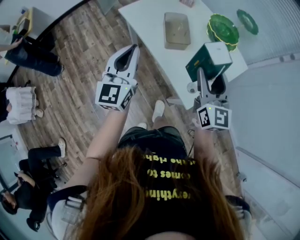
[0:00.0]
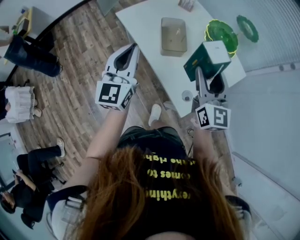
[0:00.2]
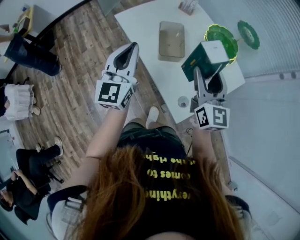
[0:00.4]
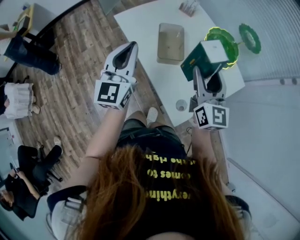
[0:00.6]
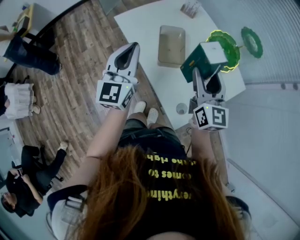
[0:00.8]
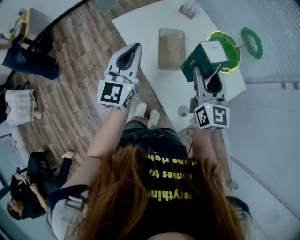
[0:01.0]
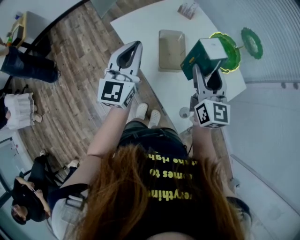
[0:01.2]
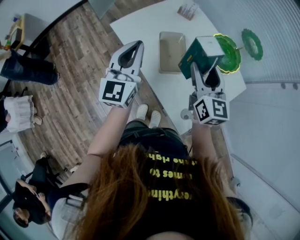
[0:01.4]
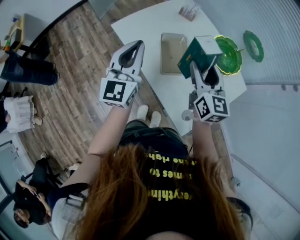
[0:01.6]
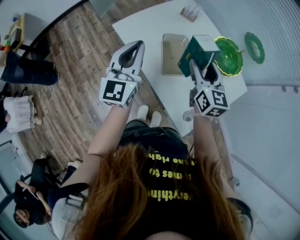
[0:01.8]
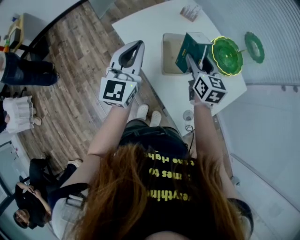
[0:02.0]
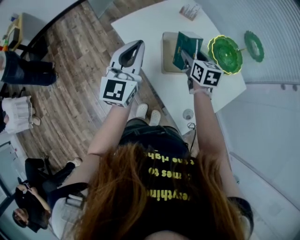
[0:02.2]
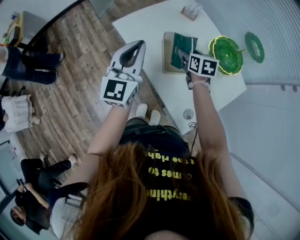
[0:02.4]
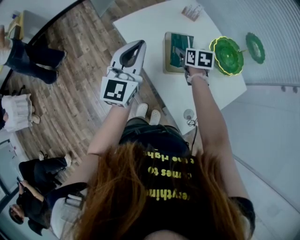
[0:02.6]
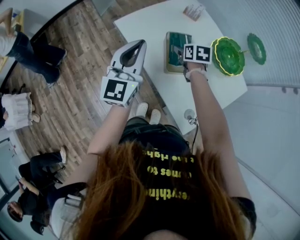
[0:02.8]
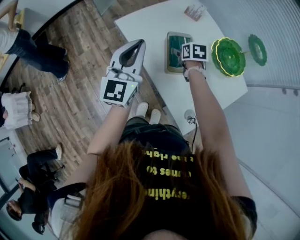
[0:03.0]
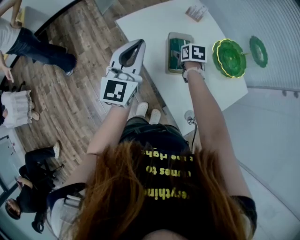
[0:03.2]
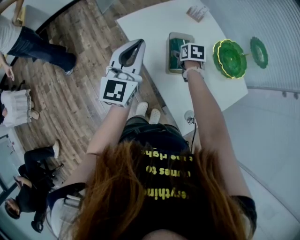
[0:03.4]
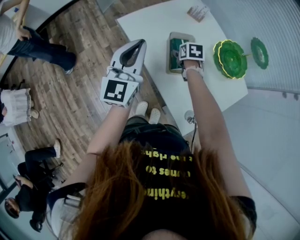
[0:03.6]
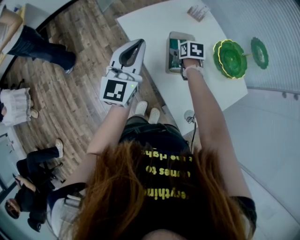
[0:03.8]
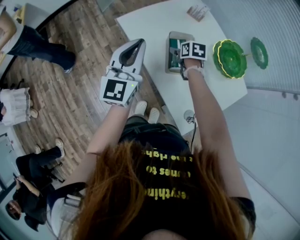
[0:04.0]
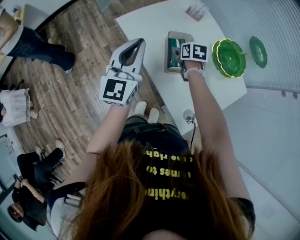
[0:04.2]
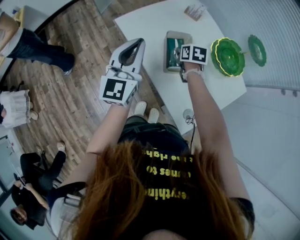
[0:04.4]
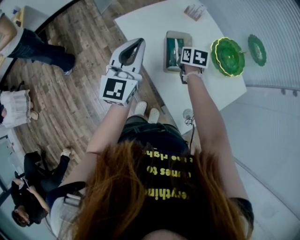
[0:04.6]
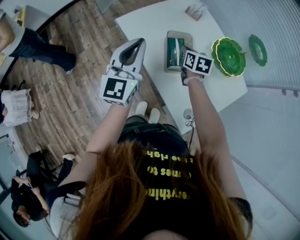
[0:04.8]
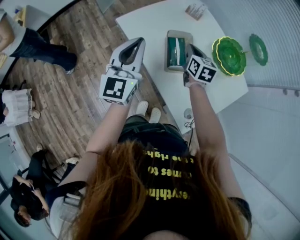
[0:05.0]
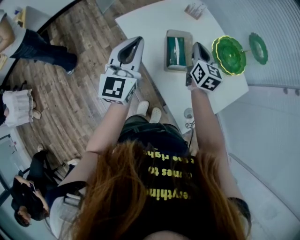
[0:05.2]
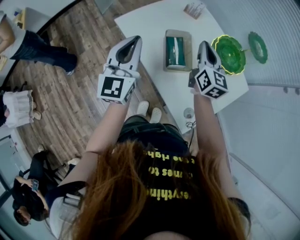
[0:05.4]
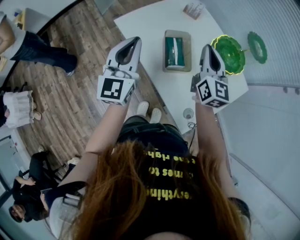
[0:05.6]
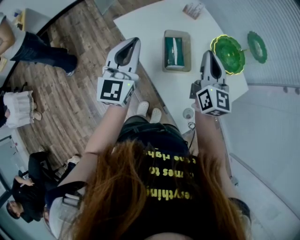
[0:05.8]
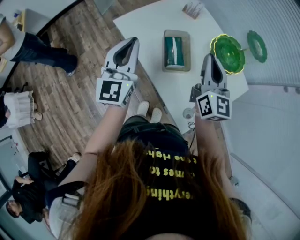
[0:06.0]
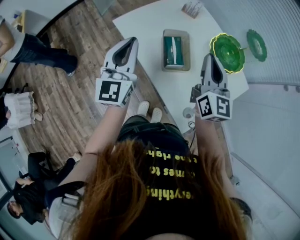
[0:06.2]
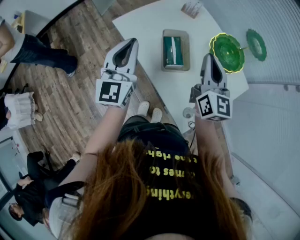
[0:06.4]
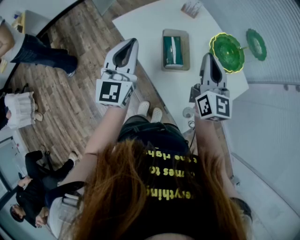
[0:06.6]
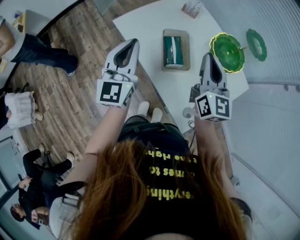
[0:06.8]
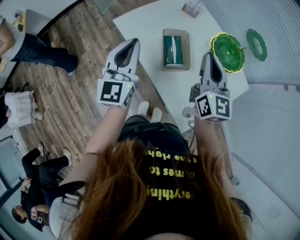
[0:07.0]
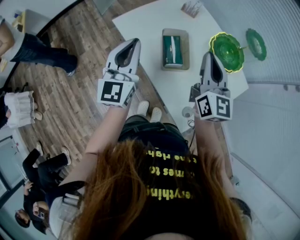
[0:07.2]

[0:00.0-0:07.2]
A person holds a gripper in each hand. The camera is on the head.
0:00.0 to 0:01.4: Both grippers travel together forward, approximately 20 cm.
0:01.4 to 0:02.8: The right gripper is displaced downward and forward by about 25 cm, and points its fingers about 50 degrees further downward.
0:02.8 to 0:04.4: The right gripper closes up.
0:04.4 to 0:05.8: The right gripper travels upward by about 25 cm, and tips its fingers upward by roughly 50 degrees.
0:05.8 to 0:07.2: The grippers make only small movements.

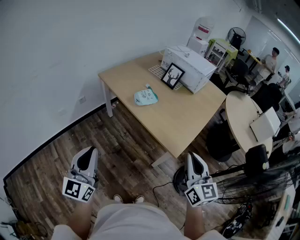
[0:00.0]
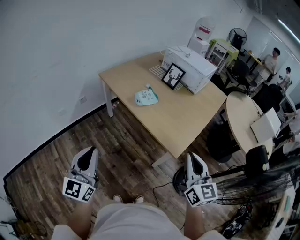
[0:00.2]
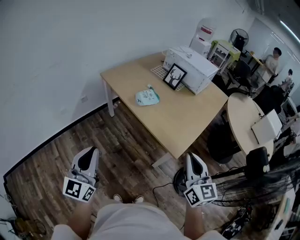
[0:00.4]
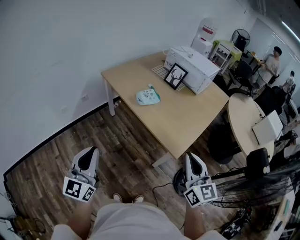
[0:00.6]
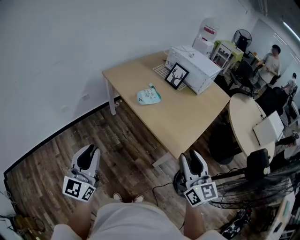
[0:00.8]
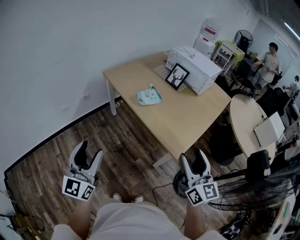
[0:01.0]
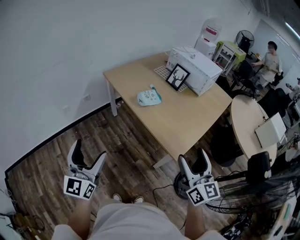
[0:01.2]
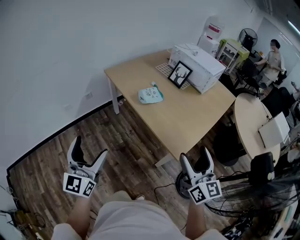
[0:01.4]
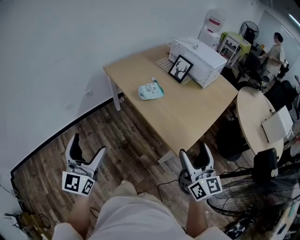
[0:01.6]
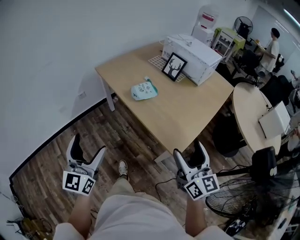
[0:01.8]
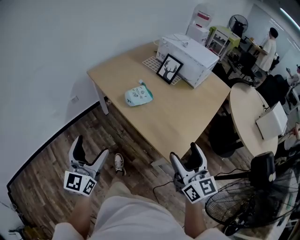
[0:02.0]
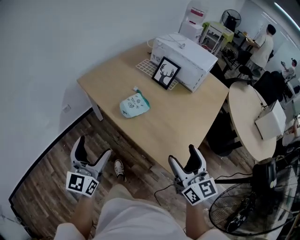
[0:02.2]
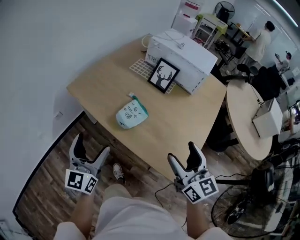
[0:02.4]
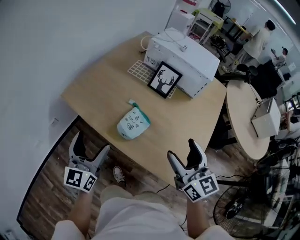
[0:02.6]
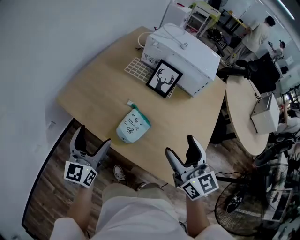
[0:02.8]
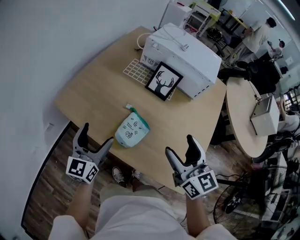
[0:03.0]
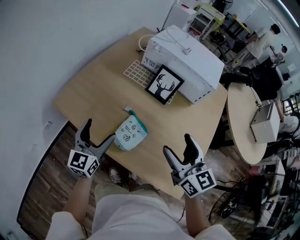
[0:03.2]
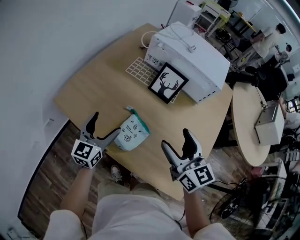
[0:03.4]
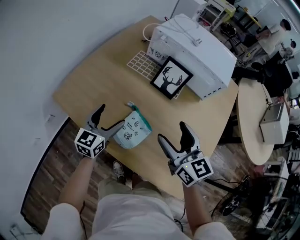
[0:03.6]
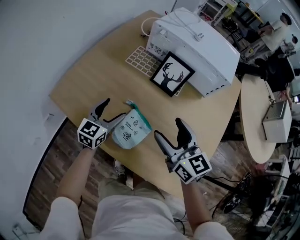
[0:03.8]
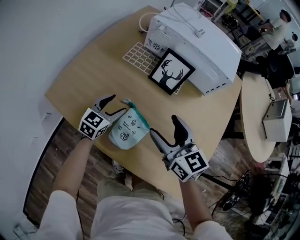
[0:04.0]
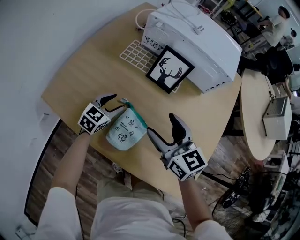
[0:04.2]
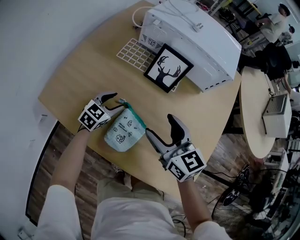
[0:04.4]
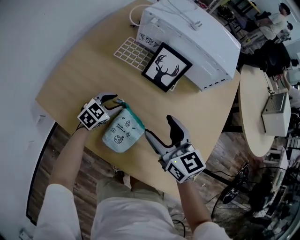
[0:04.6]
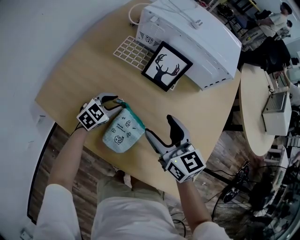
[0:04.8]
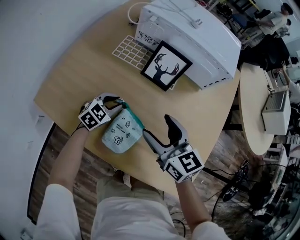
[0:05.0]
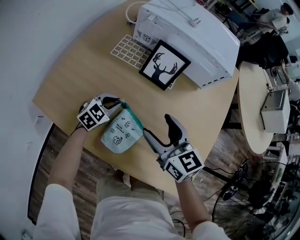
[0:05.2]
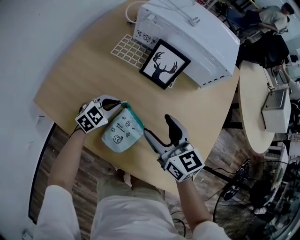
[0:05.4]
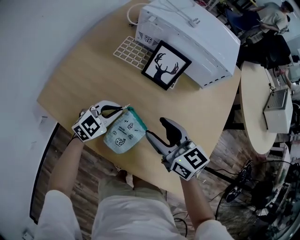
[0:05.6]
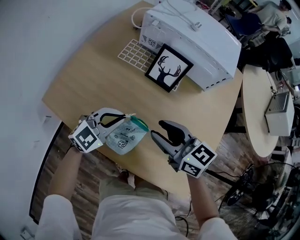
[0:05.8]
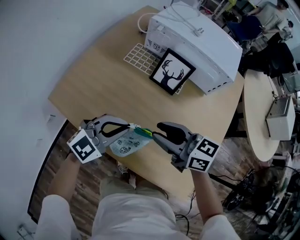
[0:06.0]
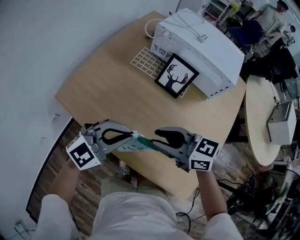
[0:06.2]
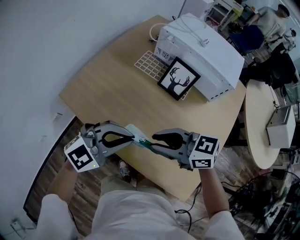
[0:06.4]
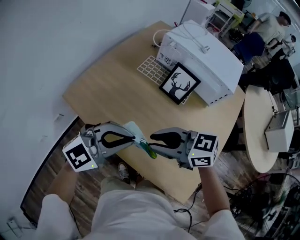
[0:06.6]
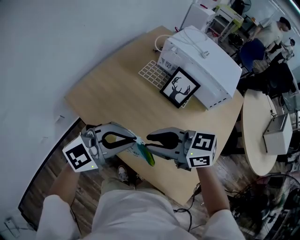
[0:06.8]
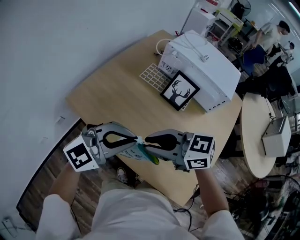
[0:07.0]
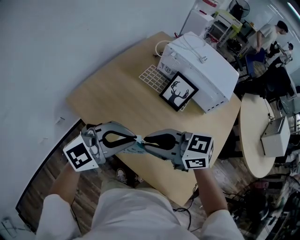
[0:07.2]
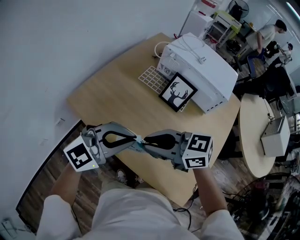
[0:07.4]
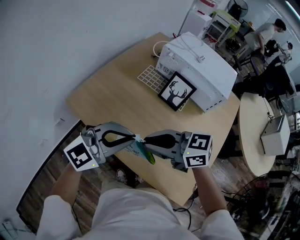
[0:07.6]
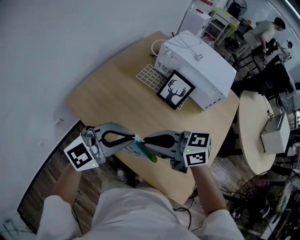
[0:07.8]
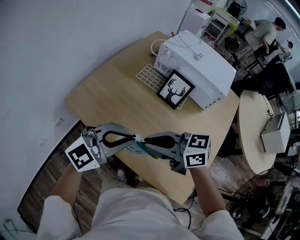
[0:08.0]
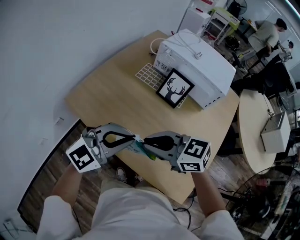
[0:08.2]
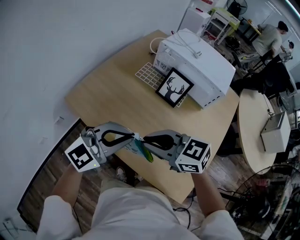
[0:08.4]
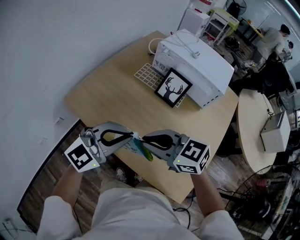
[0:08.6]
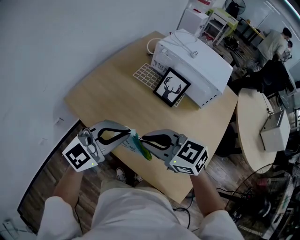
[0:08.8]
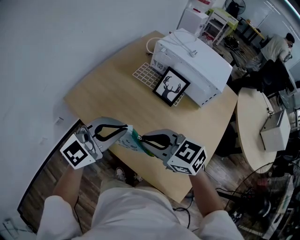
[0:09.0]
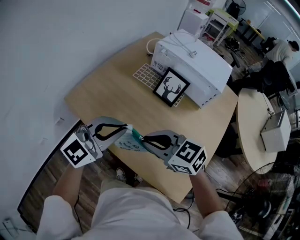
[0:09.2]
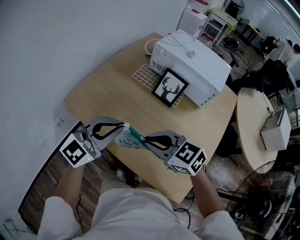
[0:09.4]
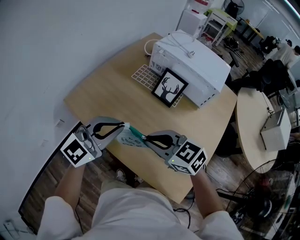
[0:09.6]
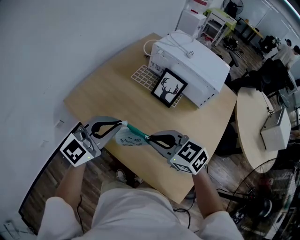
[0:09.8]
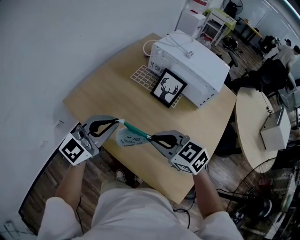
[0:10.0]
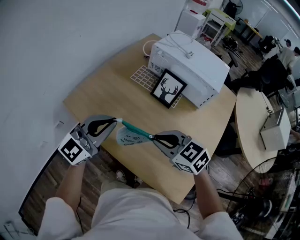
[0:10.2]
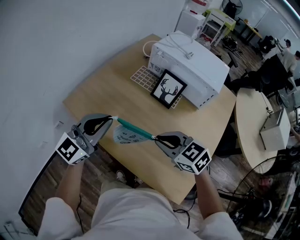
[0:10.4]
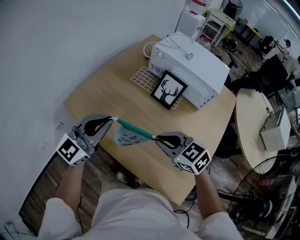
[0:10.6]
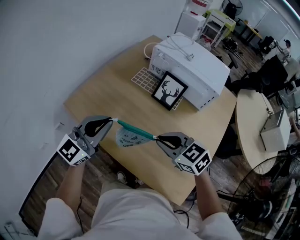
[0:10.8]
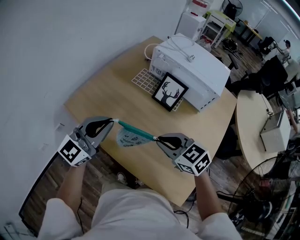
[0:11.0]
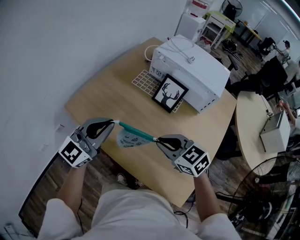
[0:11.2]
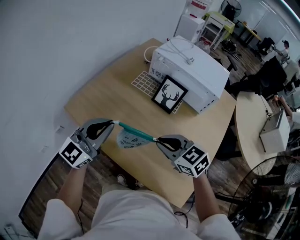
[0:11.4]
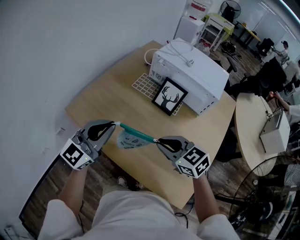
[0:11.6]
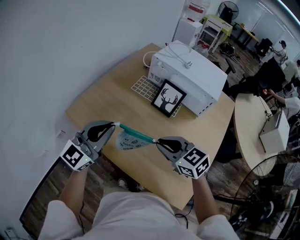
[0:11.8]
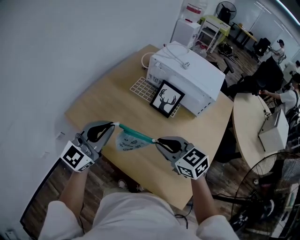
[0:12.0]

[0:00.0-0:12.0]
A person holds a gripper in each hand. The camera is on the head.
0:00.0 to 0:01.6: The left gripper opens up. Meanwhile the right gripper shifts by some 5 cm, and opens.
0:01.6 to 0:03.0: Both grippers are carried forward, roughly 50 cm. The left gripper changes its angle by roughly 30 degrees.
0:03.0 to 0:04.4: The right gripper moves forward and downward, approximately 20 cm. Meanwhile the left gripper travels downward, forward and to the right by approximately 30 cm, tips its fingers downward by roughly 30 degrees, and closes.
0:04.4 to 0:06.0: The right gripper changes place by about 5 cm, swivels some 30 degrees, and closes up. The left gripper heads upward and backward, covering some 20 cm, rotates about 30 degrees, and closes its fingers.
0:06.0 to 0:07.6: The left gripper is displaced upward by about 15 cm. The right gripper changes place by some 15 cm, and swivels some 30 degrees.
0:07.6 to 0:09.0: The right gripper turns by roughly 20 degrees.
0:09.0 to 0:10.4: The right gripper changes place by approximately 10 cm. Meanwhile the left gripper changes place by some 5 cm.
0:10.4 to 0:12.0: The grippers make only small movements.

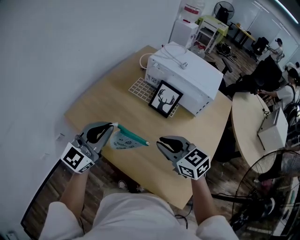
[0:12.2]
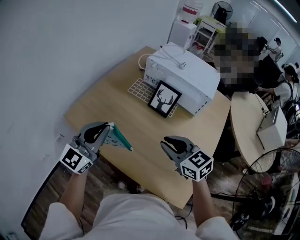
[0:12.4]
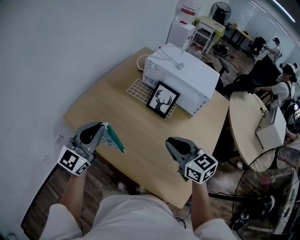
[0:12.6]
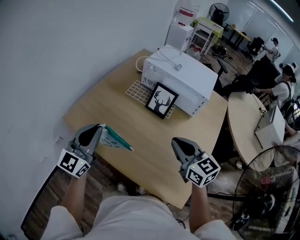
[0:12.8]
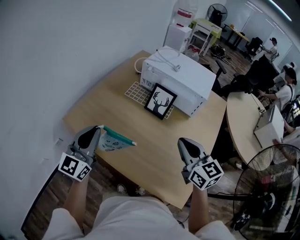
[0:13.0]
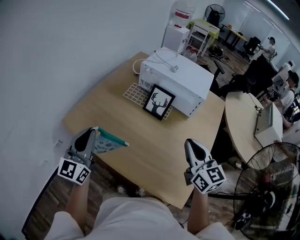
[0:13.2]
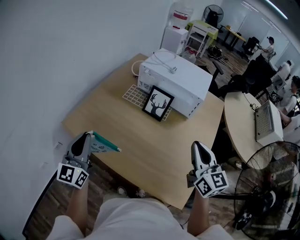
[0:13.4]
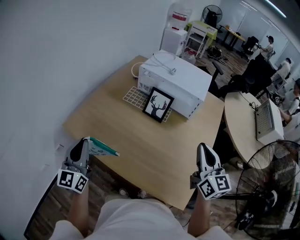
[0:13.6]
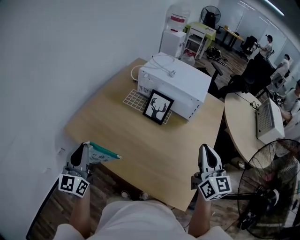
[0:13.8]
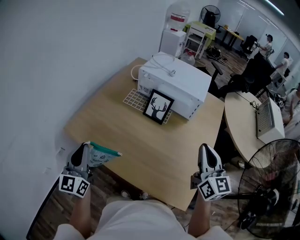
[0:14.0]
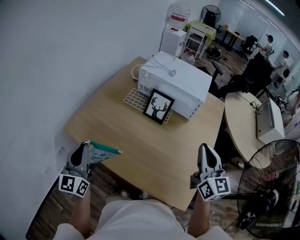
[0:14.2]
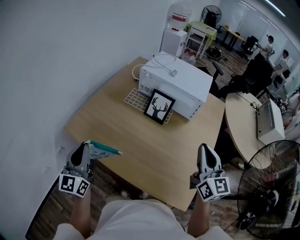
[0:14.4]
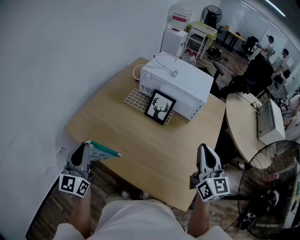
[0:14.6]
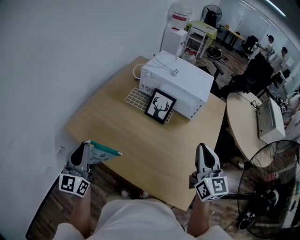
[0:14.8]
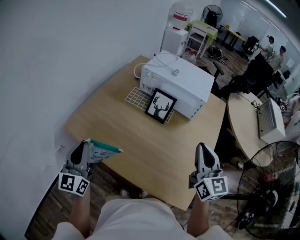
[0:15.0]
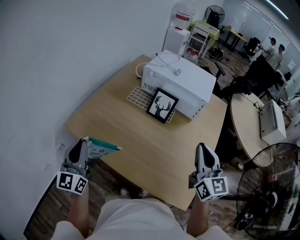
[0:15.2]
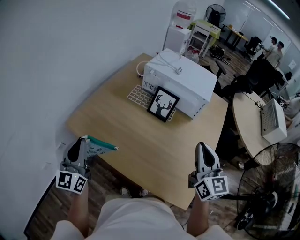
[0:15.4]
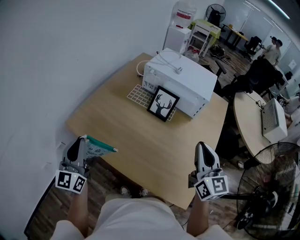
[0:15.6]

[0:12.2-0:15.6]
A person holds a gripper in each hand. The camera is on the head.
0:12.2 to 0:13.8: The left gripper moves to the left, some 10 cm, and turns by roughly 30 degrees. Meanwhile the right gripper moves to the right and upward, about 20 cm, and rotates approximately 50 degrees.
0:13.8 to 0:15.6: The grippers stay close to where they were, moving slightly.

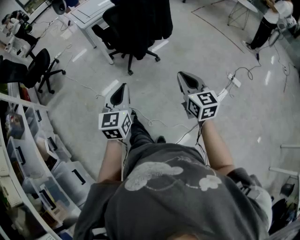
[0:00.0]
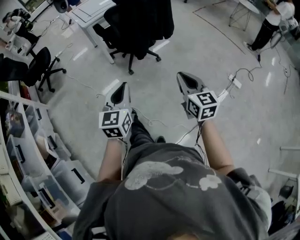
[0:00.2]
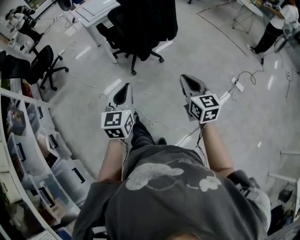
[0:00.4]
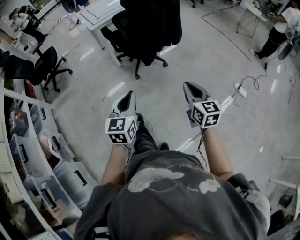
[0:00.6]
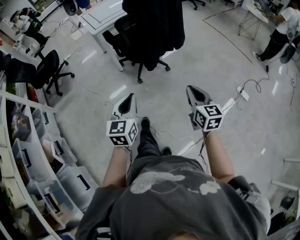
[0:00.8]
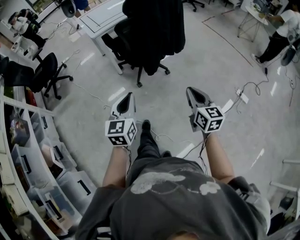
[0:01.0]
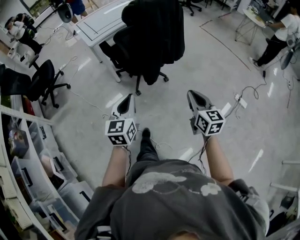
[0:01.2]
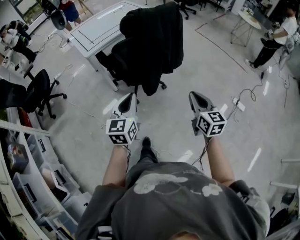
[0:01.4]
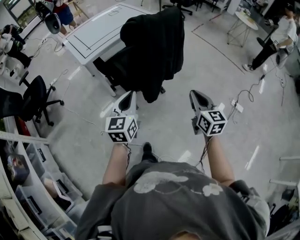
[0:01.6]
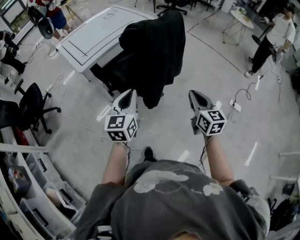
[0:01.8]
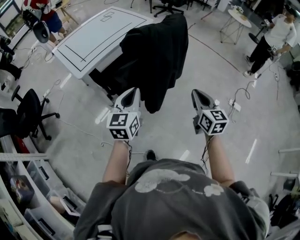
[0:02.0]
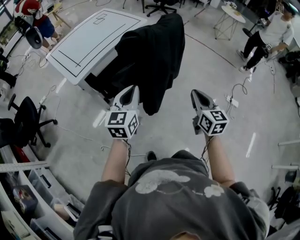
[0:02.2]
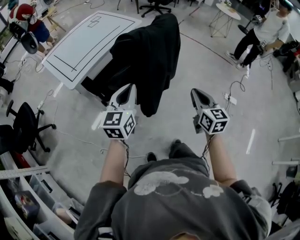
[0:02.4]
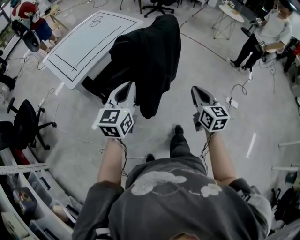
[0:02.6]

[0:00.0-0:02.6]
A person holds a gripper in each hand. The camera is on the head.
0:00.0 to 0:01.2: The grippers both shift forward by some 15 cm.
0:01.2 to 0:02.6: The grippers both shift forward by approximately 25 cm. The left gripper changes its angle by roughly 20 degrees.
